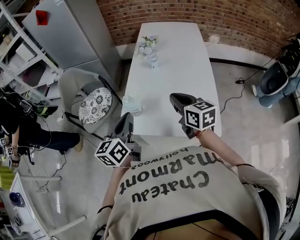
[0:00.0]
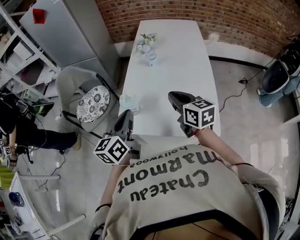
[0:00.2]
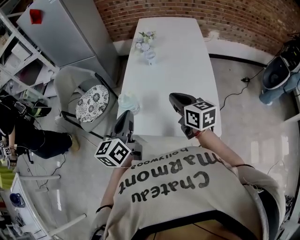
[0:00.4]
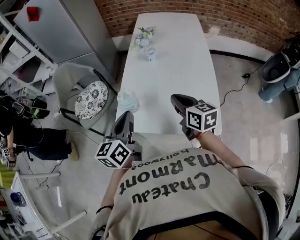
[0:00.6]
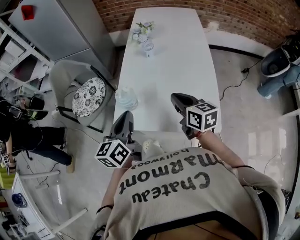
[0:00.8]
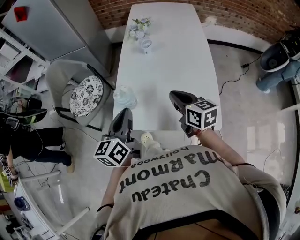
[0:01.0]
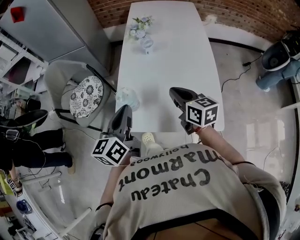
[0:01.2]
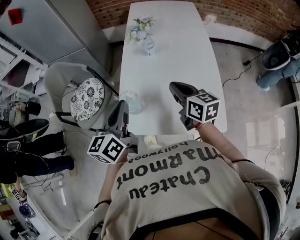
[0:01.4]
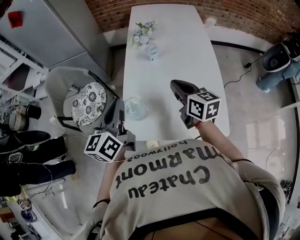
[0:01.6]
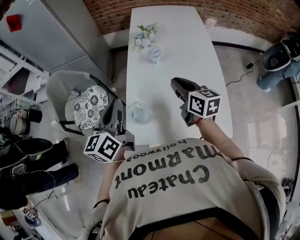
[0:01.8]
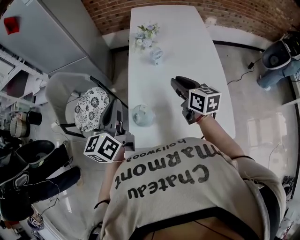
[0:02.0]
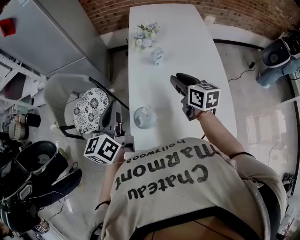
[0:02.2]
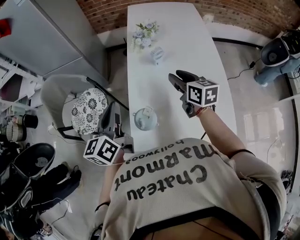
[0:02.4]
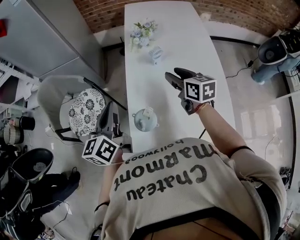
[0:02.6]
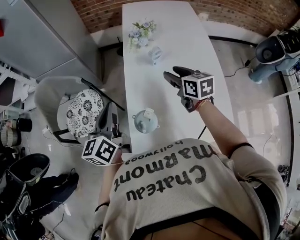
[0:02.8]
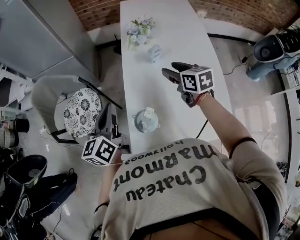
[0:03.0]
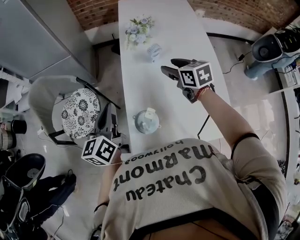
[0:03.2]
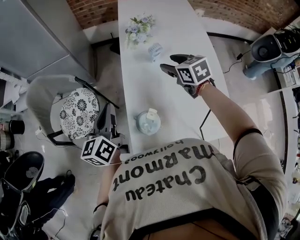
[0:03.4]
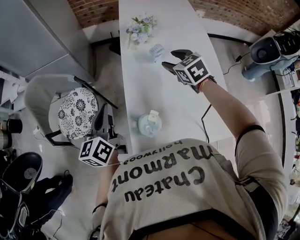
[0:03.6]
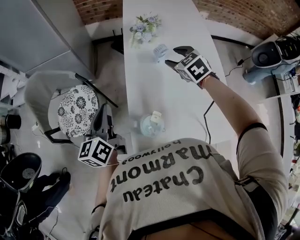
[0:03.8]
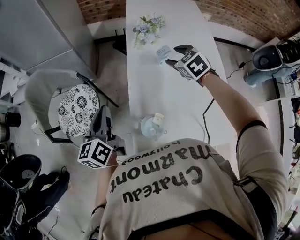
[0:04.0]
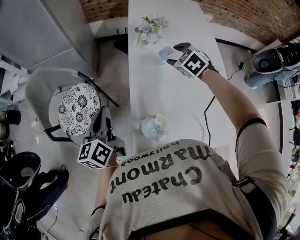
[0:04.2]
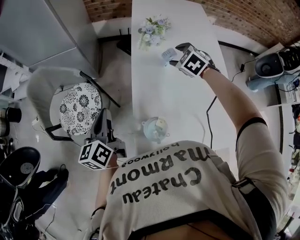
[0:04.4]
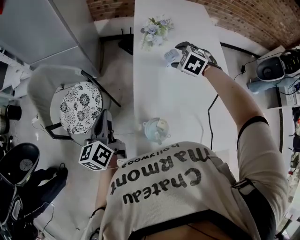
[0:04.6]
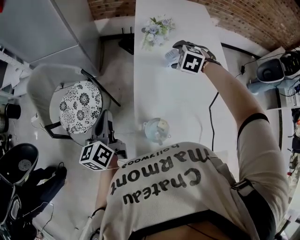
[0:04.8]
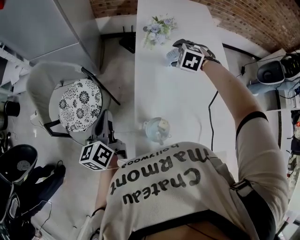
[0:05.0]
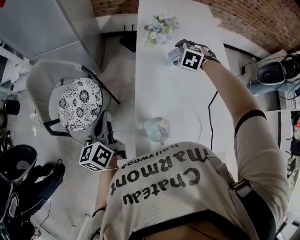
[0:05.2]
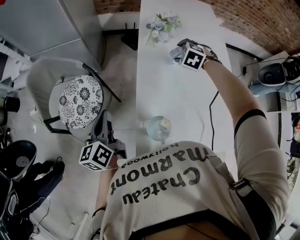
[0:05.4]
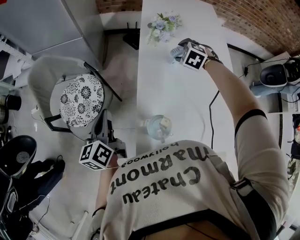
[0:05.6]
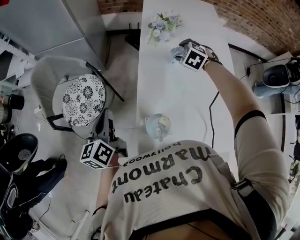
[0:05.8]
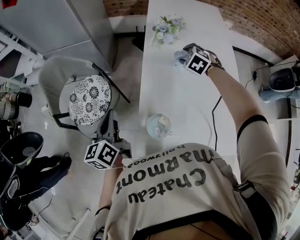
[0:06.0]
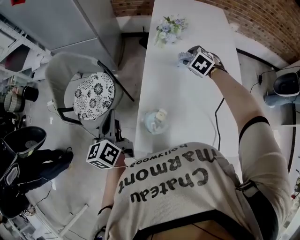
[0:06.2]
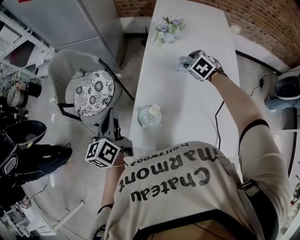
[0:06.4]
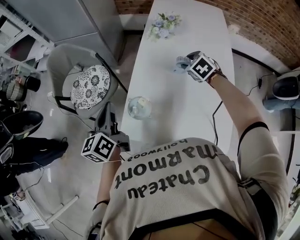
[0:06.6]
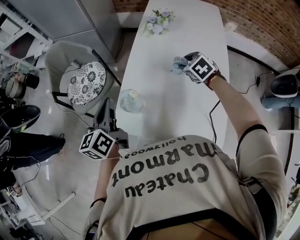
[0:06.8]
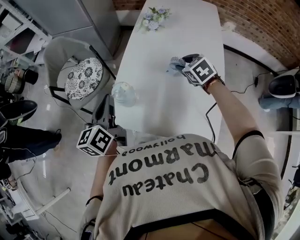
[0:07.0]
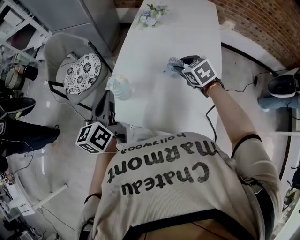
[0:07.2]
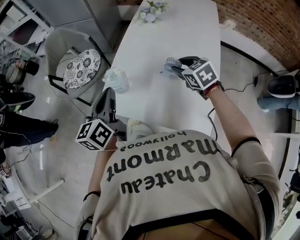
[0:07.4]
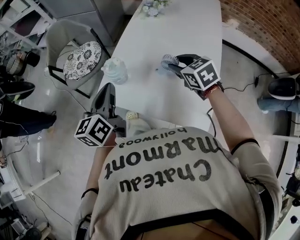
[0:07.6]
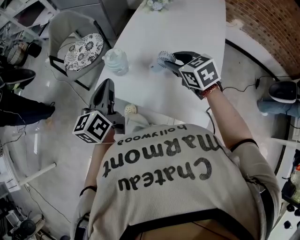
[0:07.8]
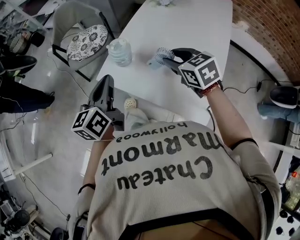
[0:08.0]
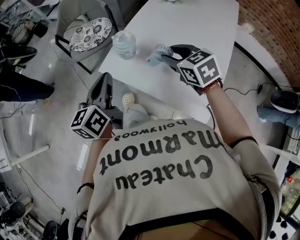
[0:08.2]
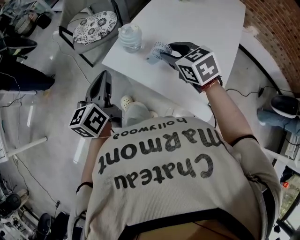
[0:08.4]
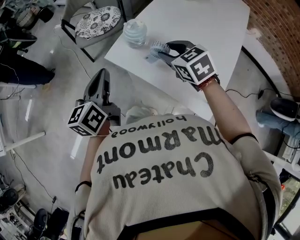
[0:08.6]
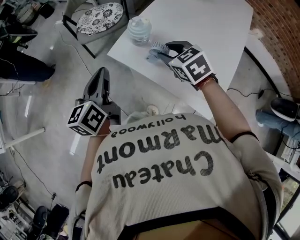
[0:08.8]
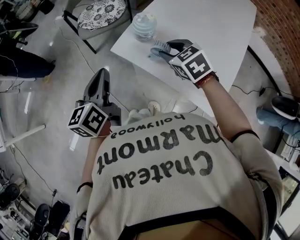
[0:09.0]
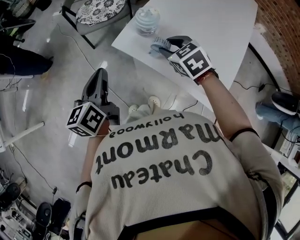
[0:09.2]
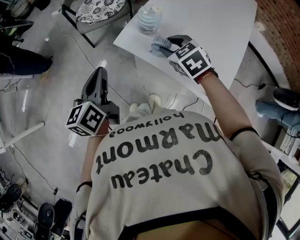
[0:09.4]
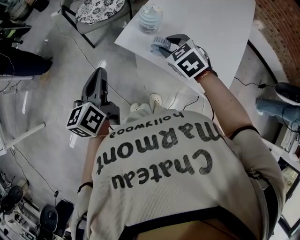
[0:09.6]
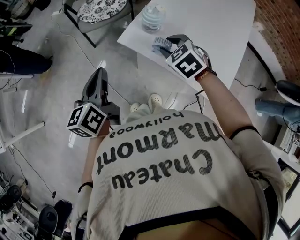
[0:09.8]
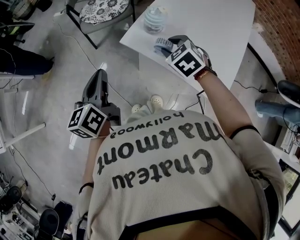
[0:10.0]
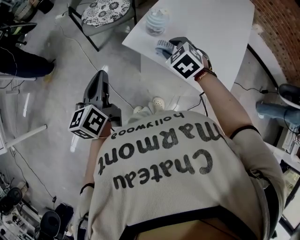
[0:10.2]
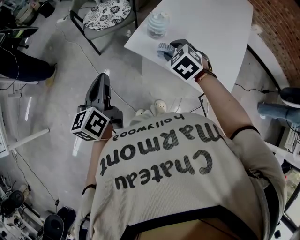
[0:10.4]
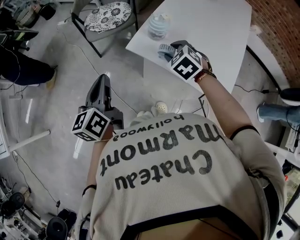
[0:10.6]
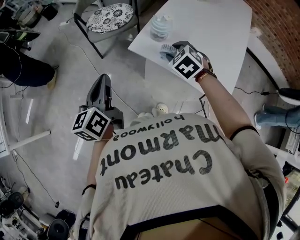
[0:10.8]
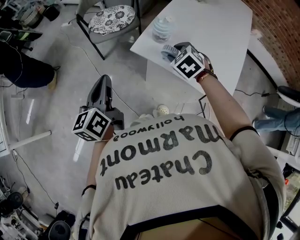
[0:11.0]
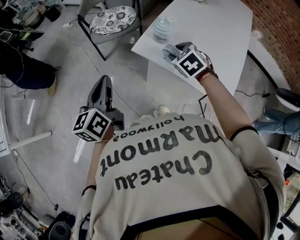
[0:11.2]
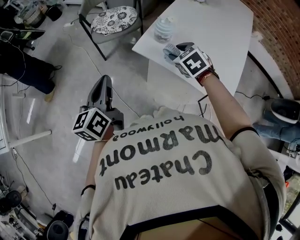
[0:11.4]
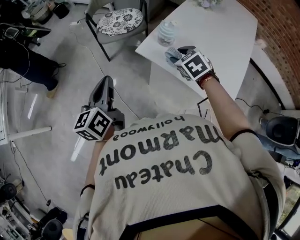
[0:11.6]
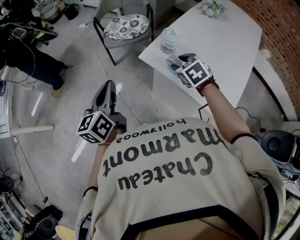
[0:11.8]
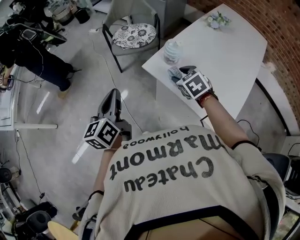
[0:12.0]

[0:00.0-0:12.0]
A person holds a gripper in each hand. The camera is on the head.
0:00.0 to 0:01.6: The grippers both shift forward by some 10 cm.
0:01.6 to 0:03.0: The left gripper shifts about 15 cm forward, to the left and downward, while the right gripper travels forward by approximately 15 cm, and opens up.
0:03.0 to 0:04.4: The left gripper is displaced to the left and downward by roughly 10 cm, while the right gripper goes some 10 cm forward, and rotates around the line of its fingers by roughly 50 degrees, counterclockwise from behind.
0:06.0 to 0:07.6: The right gripper heads backward, covering about 30 cm, and turns by approximately 40 degrees. The left gripper is displaced backward and to the right by about 25 cm.
0:07.6 to 0:09.0: The right gripper is displaced to the left by roughly 20 cm, and changes its angle by approximately 20 degrees. The left gripper travels to the left and backward by approximately 15 cm.
0:09.0 to 0:10.4: The right gripper heads to the left, covering some 5 cm. The left gripper shifts some 10 cm to the left.
0:10.4 to 0:12.0: The left gripper moves roughly 5 cm.

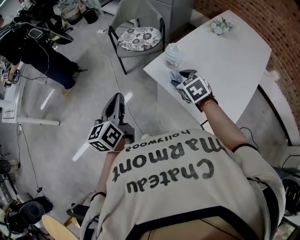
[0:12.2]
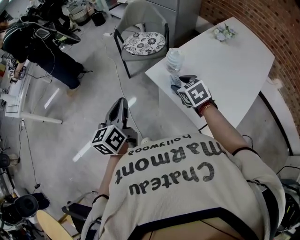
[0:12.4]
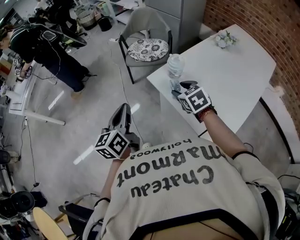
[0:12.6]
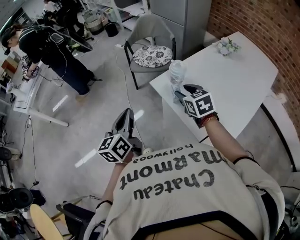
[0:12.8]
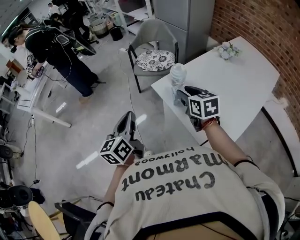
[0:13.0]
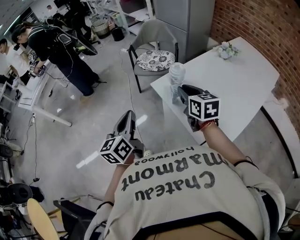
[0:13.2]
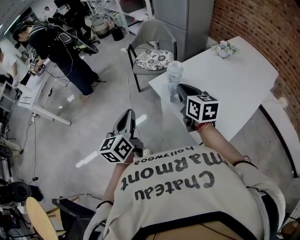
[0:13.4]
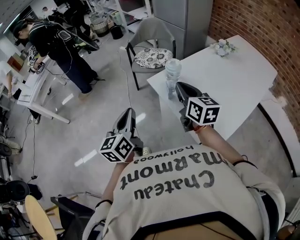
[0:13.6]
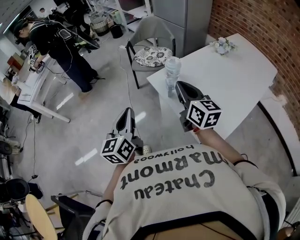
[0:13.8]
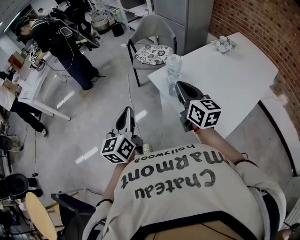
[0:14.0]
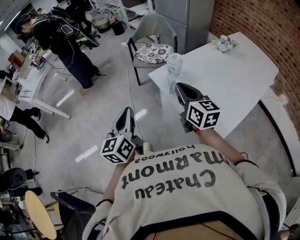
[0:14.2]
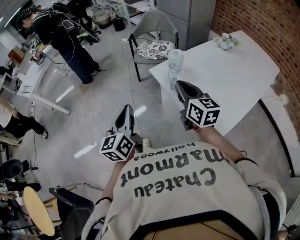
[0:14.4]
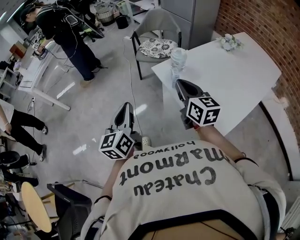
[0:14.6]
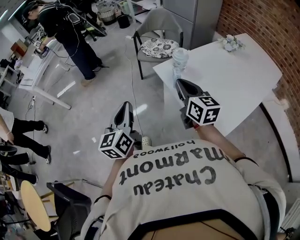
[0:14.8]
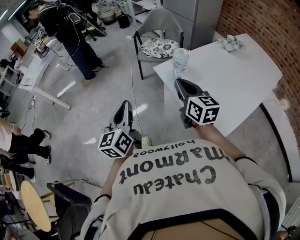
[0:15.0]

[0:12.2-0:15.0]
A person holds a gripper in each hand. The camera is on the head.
0:12.2 to 0:13.6: The left gripper is displaced backward and to the right by about 15 cm. Meanwhile the right gripper moves upward and backward, some 15 cm, tips its fingers upward by about 40 degrees, and closes.
0:13.6 to 0:15.0: The left gripper changes place by roughly 5 cm, while the right gripper ends up some 5 cm from where it was.

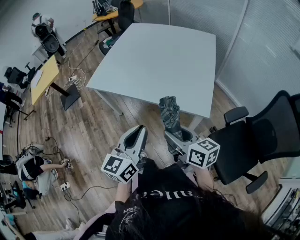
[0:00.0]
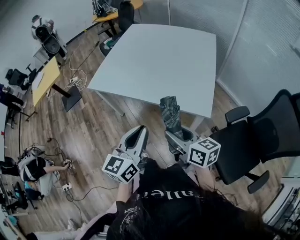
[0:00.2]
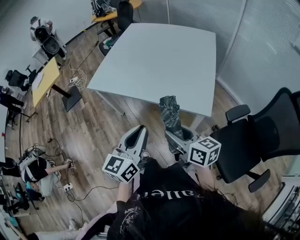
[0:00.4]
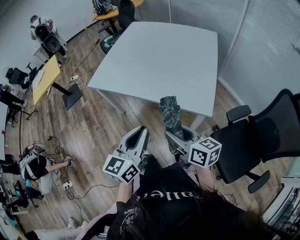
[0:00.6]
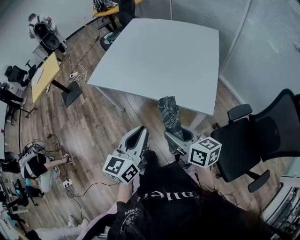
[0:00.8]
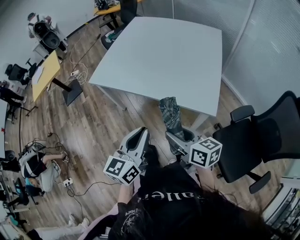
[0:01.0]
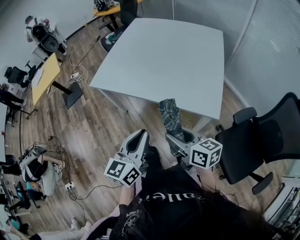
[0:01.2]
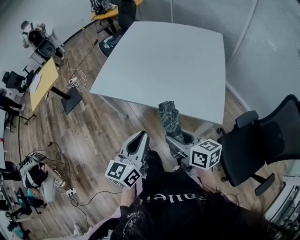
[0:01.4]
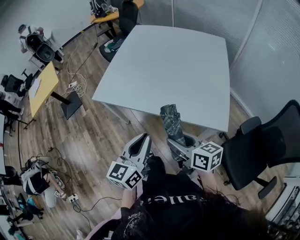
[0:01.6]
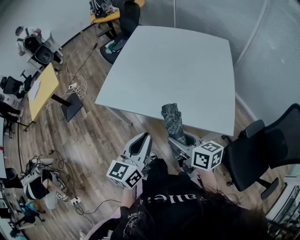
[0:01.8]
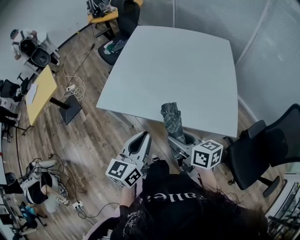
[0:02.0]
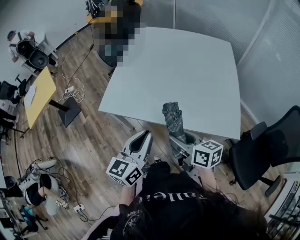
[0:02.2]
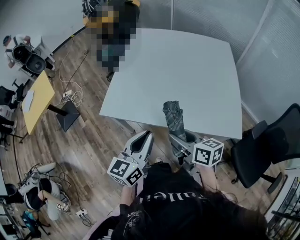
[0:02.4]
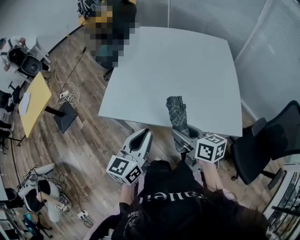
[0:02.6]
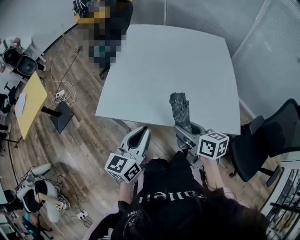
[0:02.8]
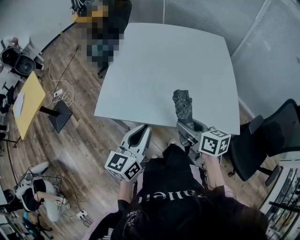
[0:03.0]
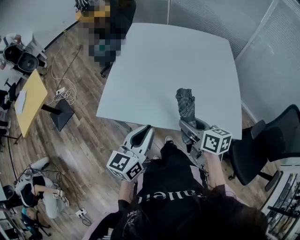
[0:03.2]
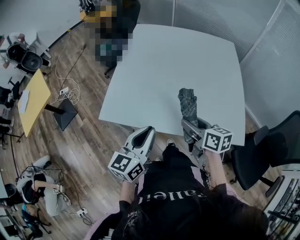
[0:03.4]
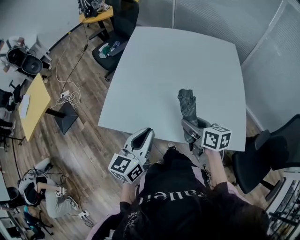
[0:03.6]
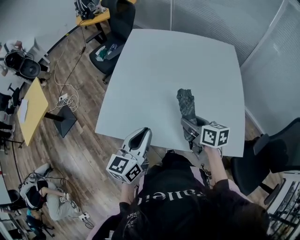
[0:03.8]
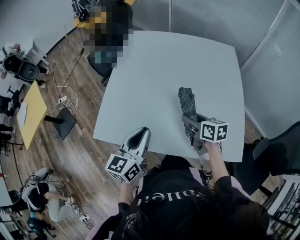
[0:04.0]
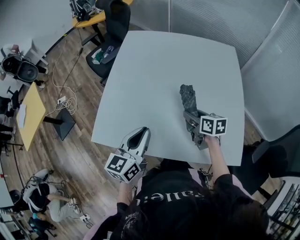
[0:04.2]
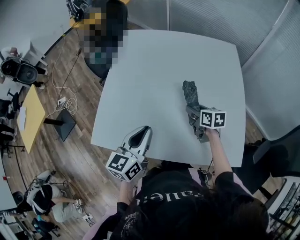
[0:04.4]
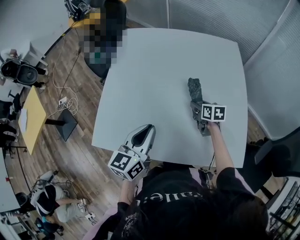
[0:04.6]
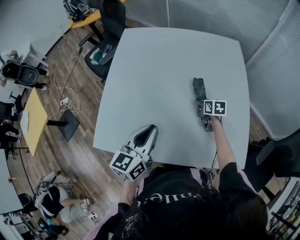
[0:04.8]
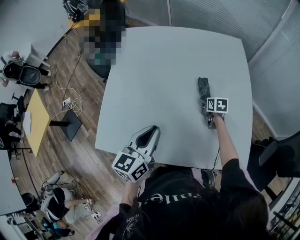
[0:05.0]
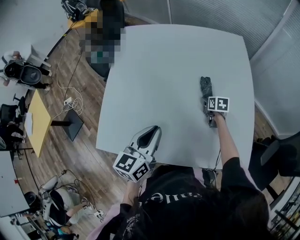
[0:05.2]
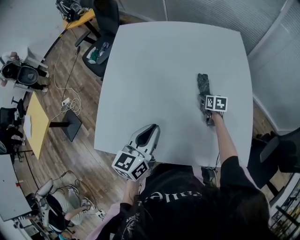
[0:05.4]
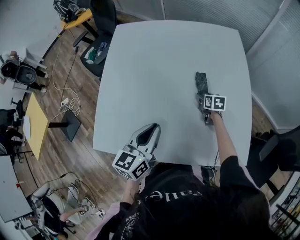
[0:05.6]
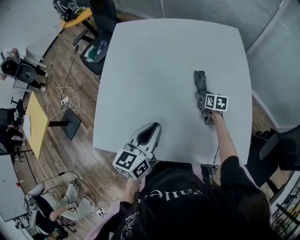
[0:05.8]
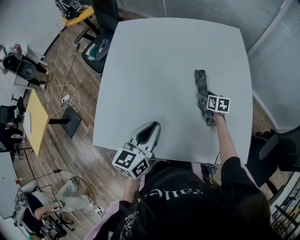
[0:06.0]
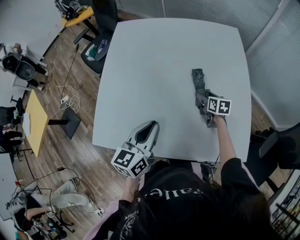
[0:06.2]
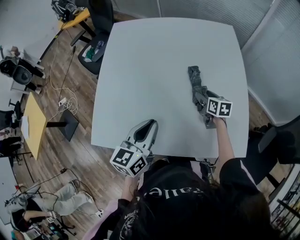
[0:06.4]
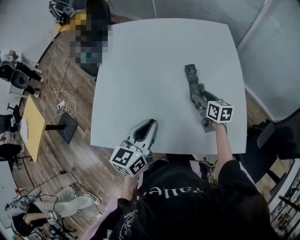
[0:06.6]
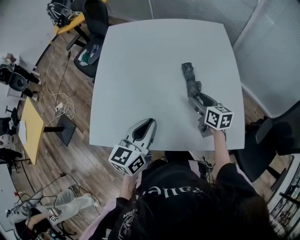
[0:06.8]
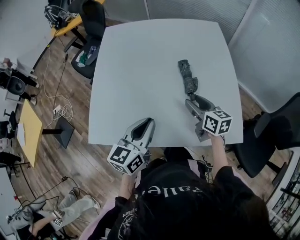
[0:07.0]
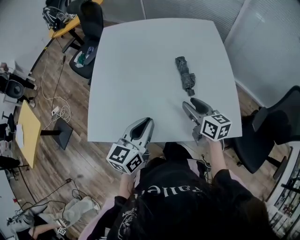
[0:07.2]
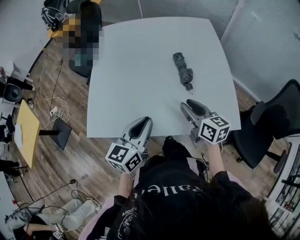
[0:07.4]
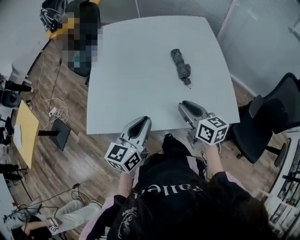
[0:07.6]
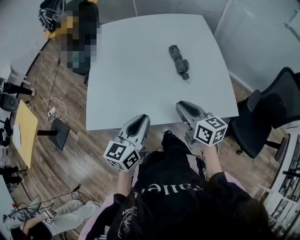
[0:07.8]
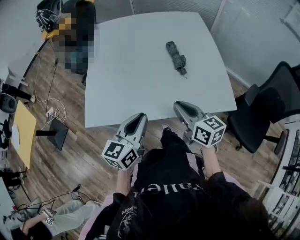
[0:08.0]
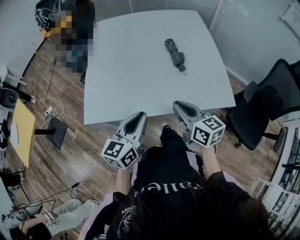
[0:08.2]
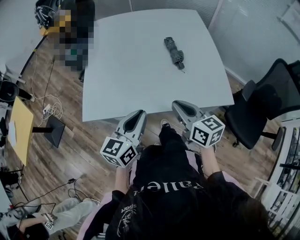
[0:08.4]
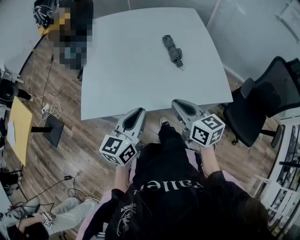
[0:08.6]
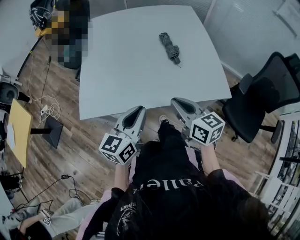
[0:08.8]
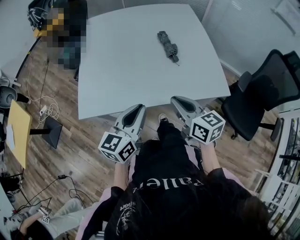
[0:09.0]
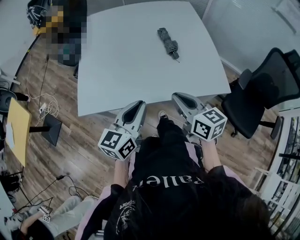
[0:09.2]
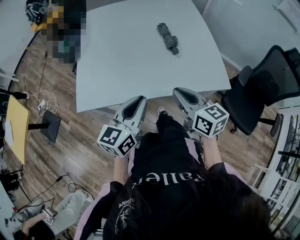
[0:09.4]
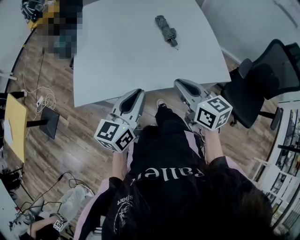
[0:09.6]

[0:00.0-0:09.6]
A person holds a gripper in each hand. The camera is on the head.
0:00.0 to 0:01.6: The grippers both shift forward and to the left by about 15 cm.
0:01.6 to 0:03.2: The right gripper is displaced forward by roughly 20 cm; the left gripper is displaced forward and to the left by roughly 20 cm.
0:03.2 to 0:04.8: The left gripper heads forward, covering about 20 cm; the right gripper goes some 40 cm forward, downward and to the right, and swivels about 30 degrees.
0:04.8 to 0:06.4: The right gripper ends up some 5 cm from where it was.
0:06.4 to 0:08.0: The right gripper moves backward and upward, some 40 cm, rotates some 20 degrees, and closes its fingers; the left gripper travels backward by roughly 20 cm.
0:08.0 to 0:09.6: The grippers move only a little.
